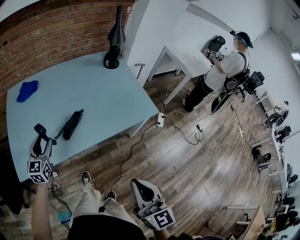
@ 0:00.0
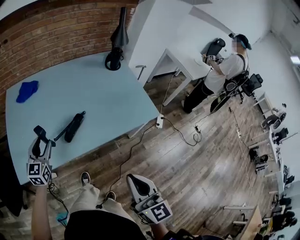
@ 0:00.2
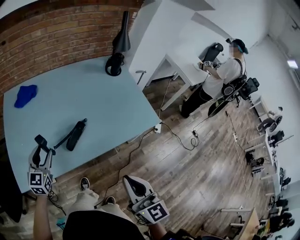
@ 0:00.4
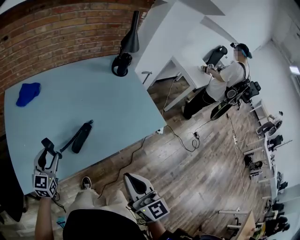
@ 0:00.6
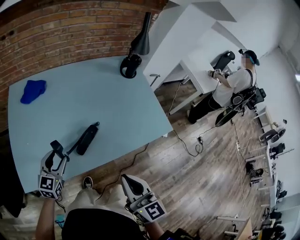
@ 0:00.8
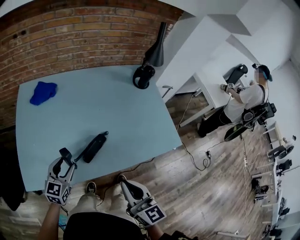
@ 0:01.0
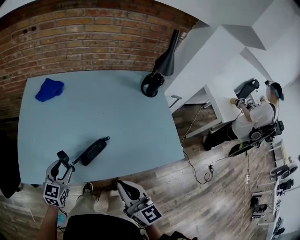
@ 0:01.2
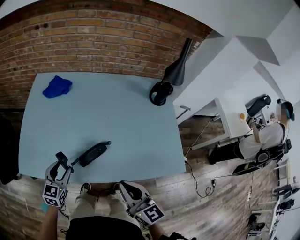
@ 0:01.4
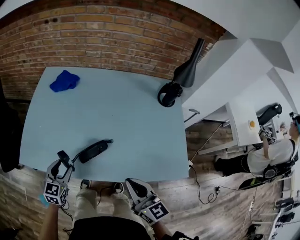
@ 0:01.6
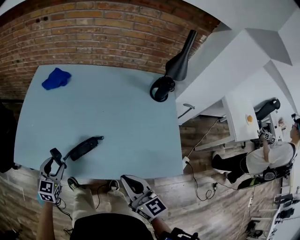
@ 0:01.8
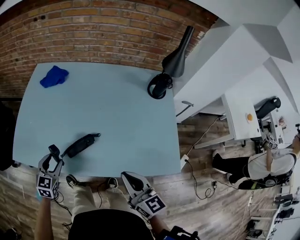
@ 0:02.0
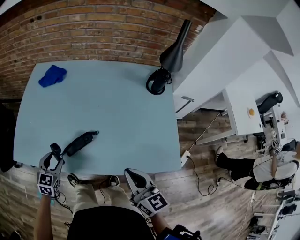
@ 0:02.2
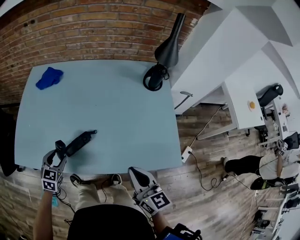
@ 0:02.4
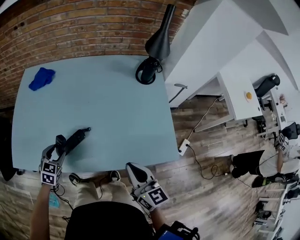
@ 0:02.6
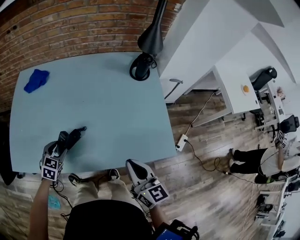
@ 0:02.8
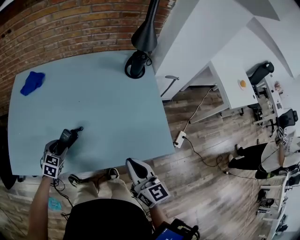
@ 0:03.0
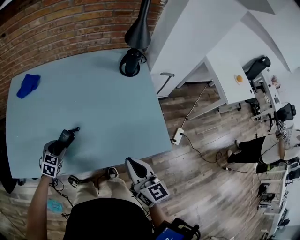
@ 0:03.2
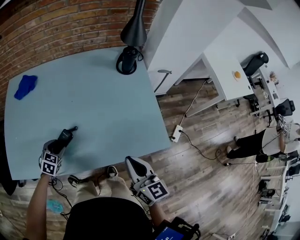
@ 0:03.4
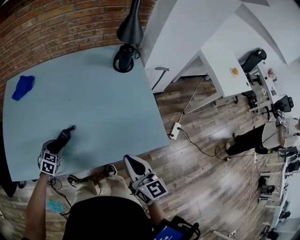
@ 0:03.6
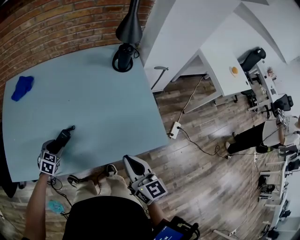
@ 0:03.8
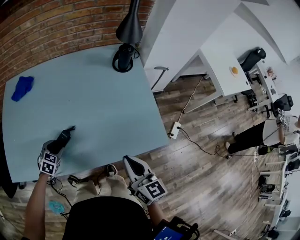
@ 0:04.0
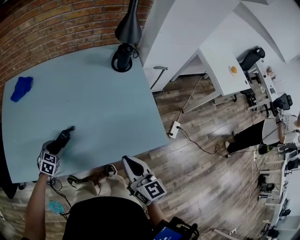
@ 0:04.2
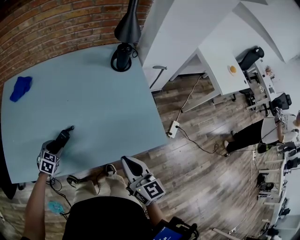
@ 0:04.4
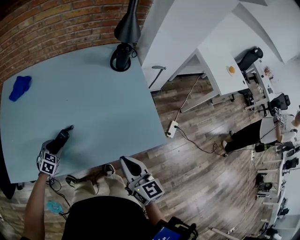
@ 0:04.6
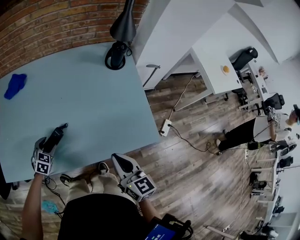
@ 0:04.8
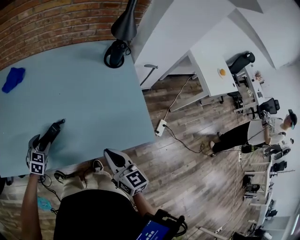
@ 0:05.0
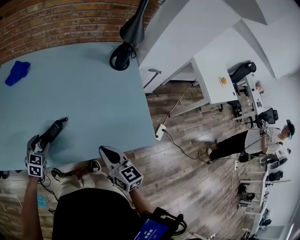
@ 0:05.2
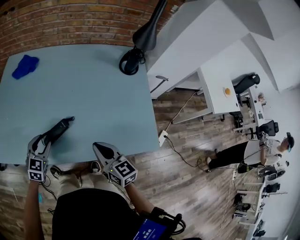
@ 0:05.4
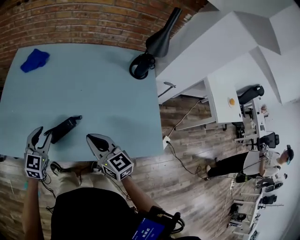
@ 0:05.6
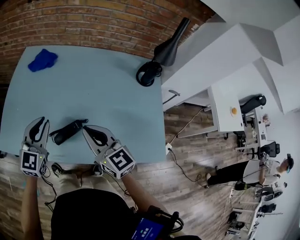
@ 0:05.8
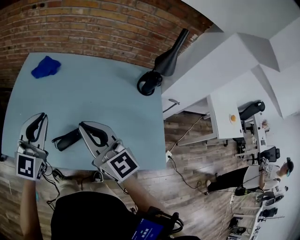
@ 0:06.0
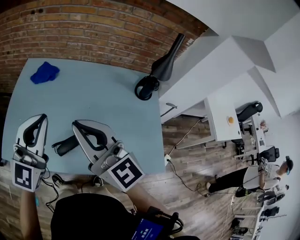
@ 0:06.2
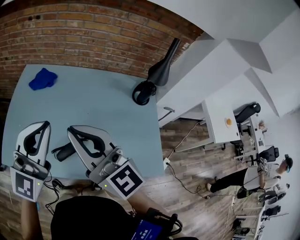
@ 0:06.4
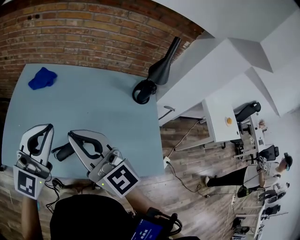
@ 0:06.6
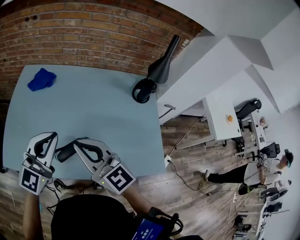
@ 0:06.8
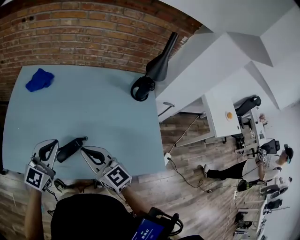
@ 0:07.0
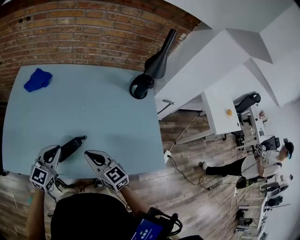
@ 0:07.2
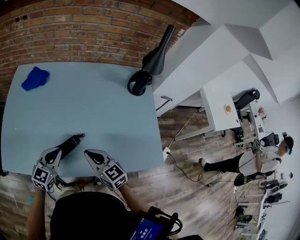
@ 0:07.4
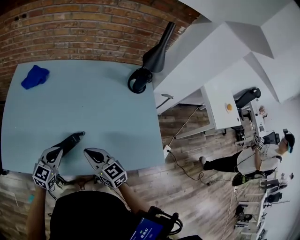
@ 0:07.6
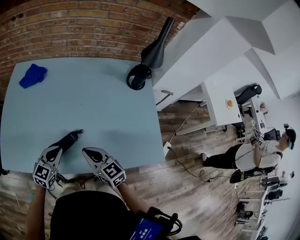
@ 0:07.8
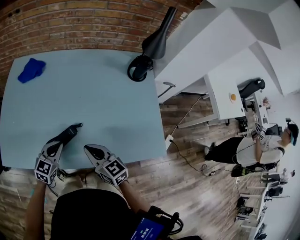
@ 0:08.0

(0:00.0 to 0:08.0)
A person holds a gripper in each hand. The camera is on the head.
0:00.0 - 0:01.6: The left gripper goes roughly 5 cm downward, and rotates some 20 degrees, while the right gripper changes place by some 30 cm, and swivels approximately 40 degrees.
0:01.6 - 0:03.2: The left gripper shifts approximately 20 cm to the right, downward and forward, and rotates about 30 degrees. Meanwhile the right gripper goes about 15 cm to the right.
0:03.2 - 0:04.8: The grippers make only small movements.
0:04.8 - 0:06.4: The left gripper heads upward, covering about 40 cm, tilts its fingers about 60 degrees upward, and closes, while the right gripper moves upward, to the left and forward, approximately 40 cm, and changes its angle by about 50 degrees.
0:06.4 - 0:08.0: Both grippers travel together downward, approximately 35 cm. The right gripper turns by some 40 degrees, while the left gripper points its fingers roughly 40 degrees further downward.

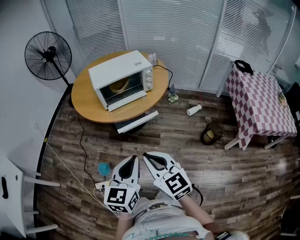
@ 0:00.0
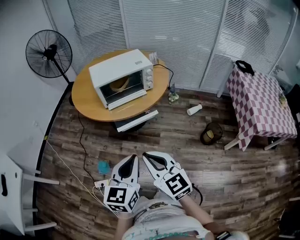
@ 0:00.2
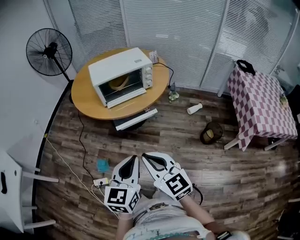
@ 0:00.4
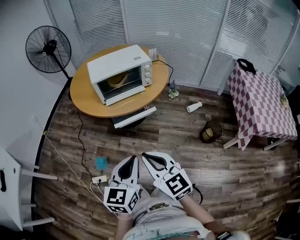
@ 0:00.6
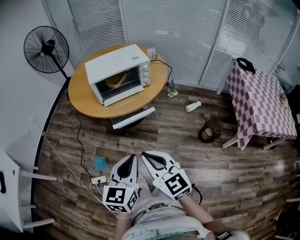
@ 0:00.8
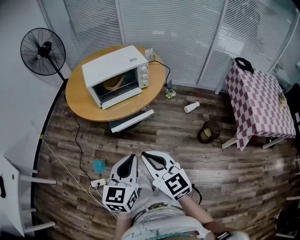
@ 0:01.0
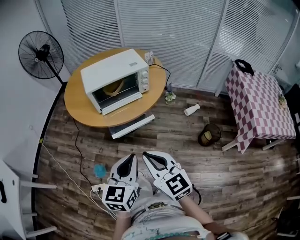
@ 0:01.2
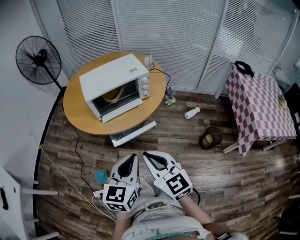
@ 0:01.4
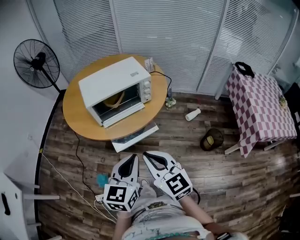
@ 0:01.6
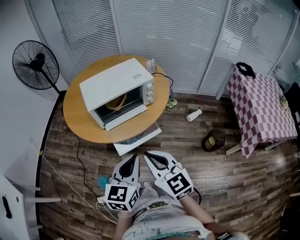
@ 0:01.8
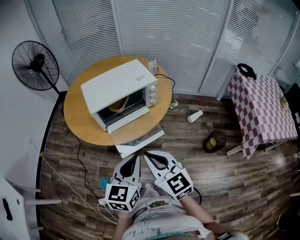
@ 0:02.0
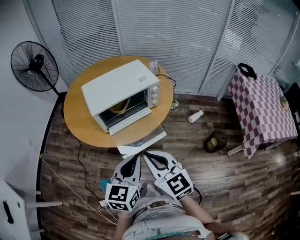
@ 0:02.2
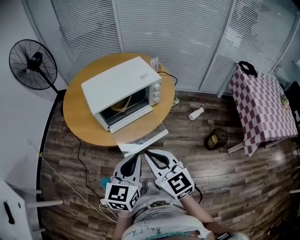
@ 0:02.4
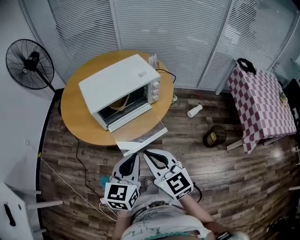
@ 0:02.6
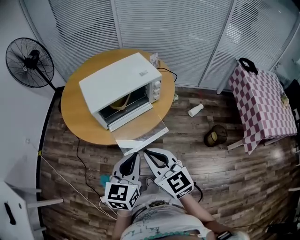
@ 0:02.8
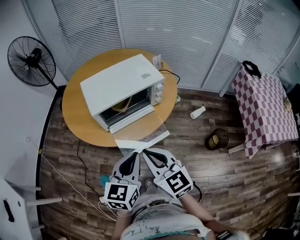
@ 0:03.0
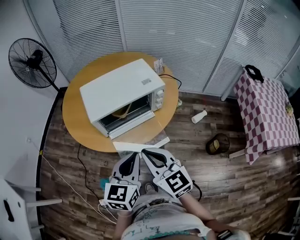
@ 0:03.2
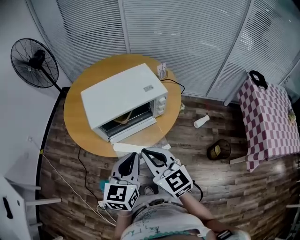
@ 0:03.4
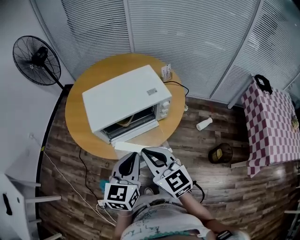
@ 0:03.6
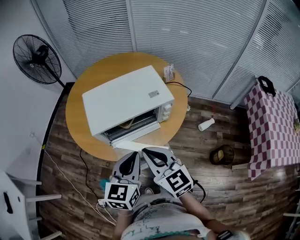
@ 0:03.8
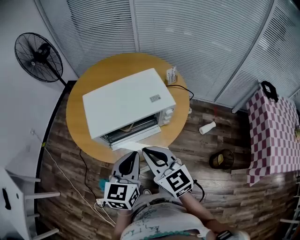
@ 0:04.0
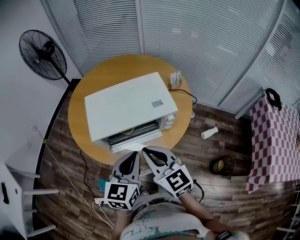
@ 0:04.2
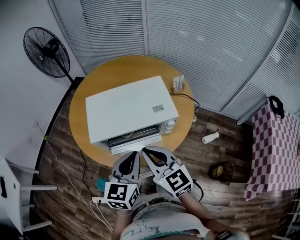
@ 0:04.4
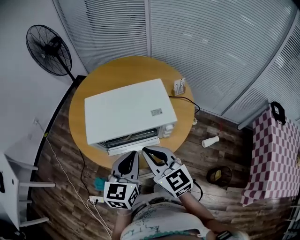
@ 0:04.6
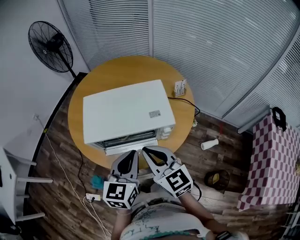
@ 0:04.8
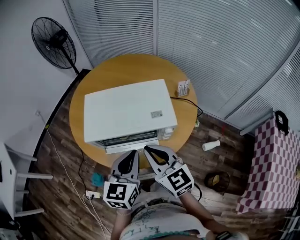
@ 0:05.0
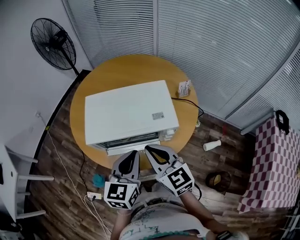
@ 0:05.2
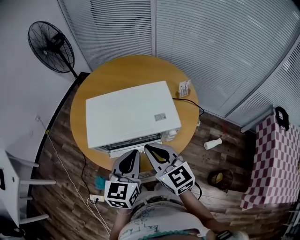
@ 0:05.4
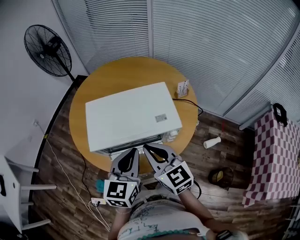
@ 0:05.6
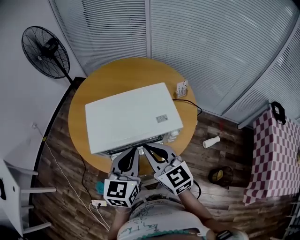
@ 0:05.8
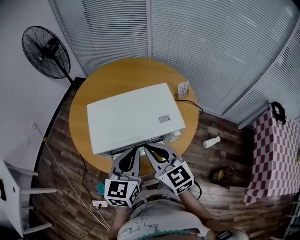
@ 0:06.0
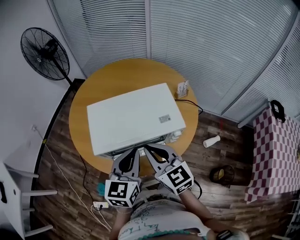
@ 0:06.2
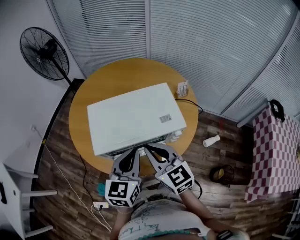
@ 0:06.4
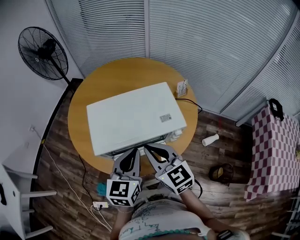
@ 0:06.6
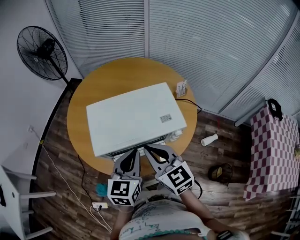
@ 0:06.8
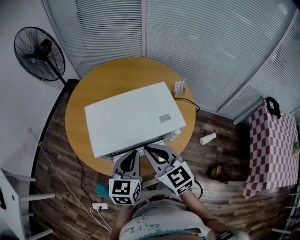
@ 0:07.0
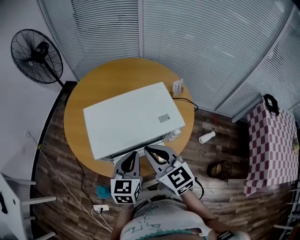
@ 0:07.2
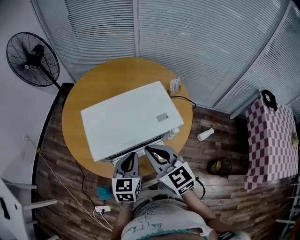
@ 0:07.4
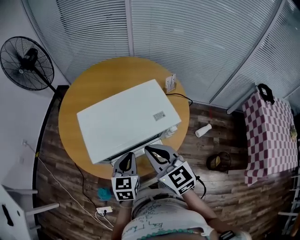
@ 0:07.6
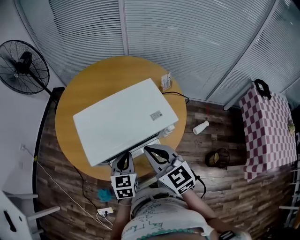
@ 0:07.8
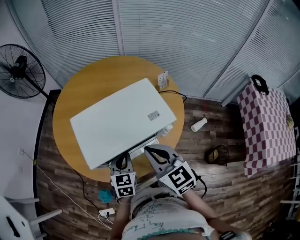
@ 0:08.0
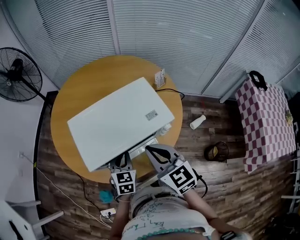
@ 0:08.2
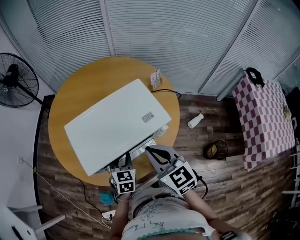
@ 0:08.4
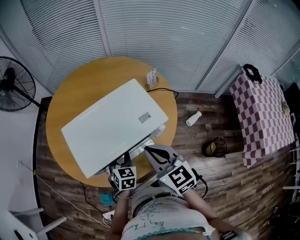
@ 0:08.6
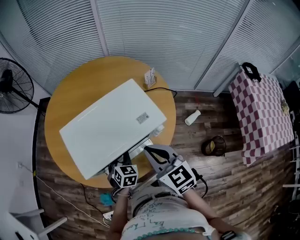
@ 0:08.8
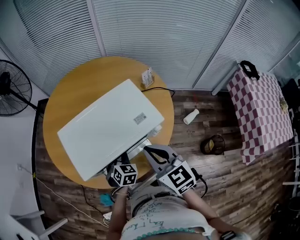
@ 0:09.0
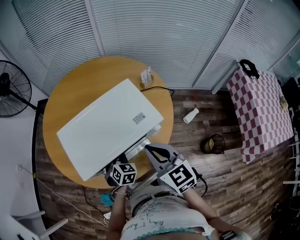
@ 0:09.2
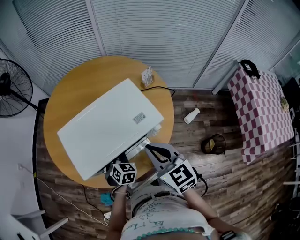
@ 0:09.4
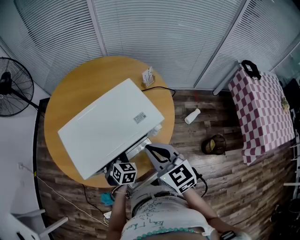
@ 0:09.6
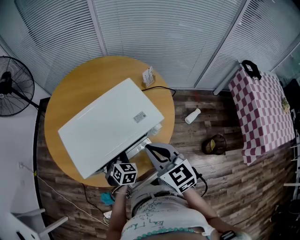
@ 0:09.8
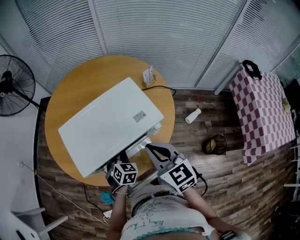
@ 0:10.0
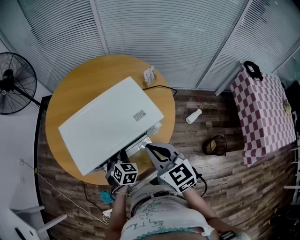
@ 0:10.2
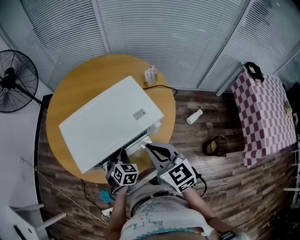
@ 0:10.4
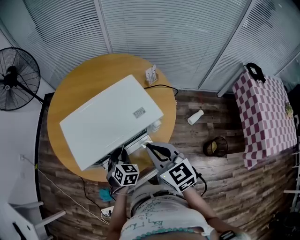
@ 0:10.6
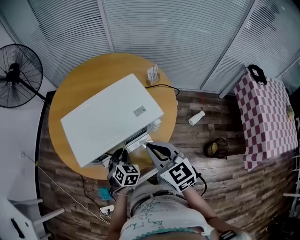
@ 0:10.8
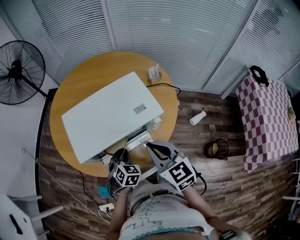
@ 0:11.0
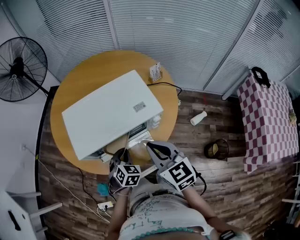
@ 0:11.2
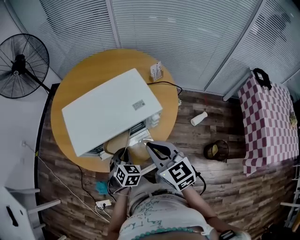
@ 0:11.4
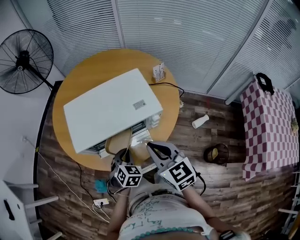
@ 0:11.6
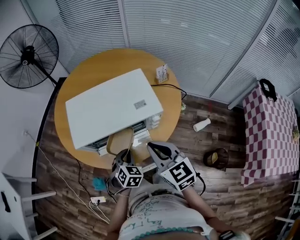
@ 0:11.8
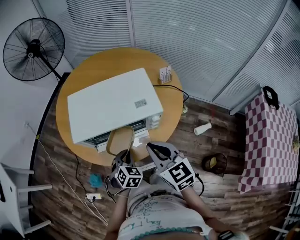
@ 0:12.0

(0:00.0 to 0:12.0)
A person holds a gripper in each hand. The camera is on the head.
0:00.0 - 0:01.6: The two grippers go about 15 cm forward.
0:01.6 - 0:03.0: The right gripper moves forward and to the left, some 10 cm, while the left gripper moves forward, about 10 cm.
0:03.0 - 0:04.4: Both grippers travel together forward, approximately 15 cm.
0:04.4 - 0:06.0: The grippers both shift forward by roughly 5 cm.
0:06.0 - 0:07.6: The left gripper is displaced downward by roughly 10 cm.
0:07.6 - 0:09.0: The left gripper is displaced downward and forward by roughly 10 cm, turns by some 30 degrees, and opens up; the right gripper heads to the right, covering roughly 5 cm.
0:09.0 - 0:10.4: The grippers move only a little.
0:10.4 - 0:12.0: The right gripper shifts by approximately 5 cm. Meanwhile the left gripper moves backward, approximately 10 cm.

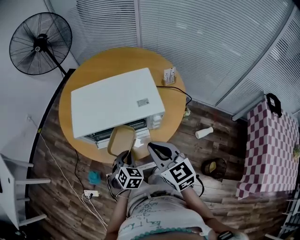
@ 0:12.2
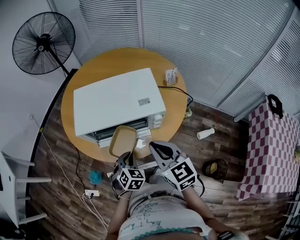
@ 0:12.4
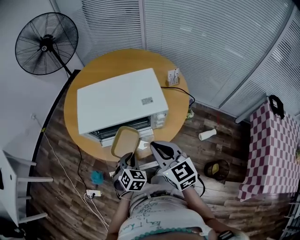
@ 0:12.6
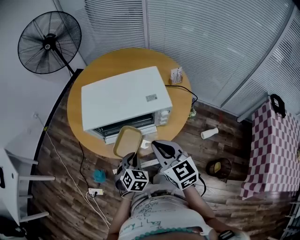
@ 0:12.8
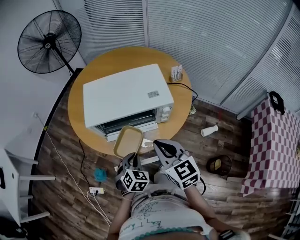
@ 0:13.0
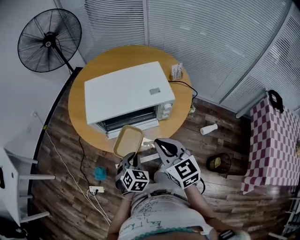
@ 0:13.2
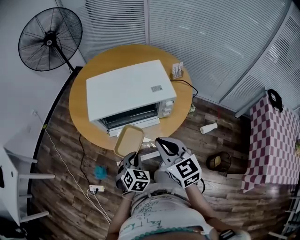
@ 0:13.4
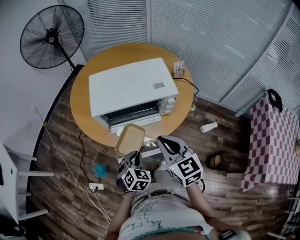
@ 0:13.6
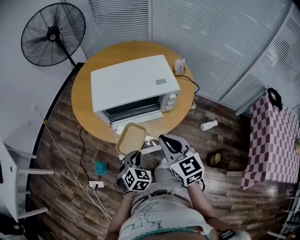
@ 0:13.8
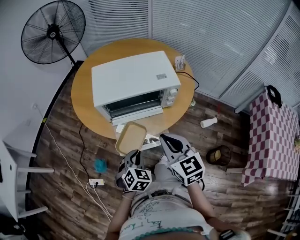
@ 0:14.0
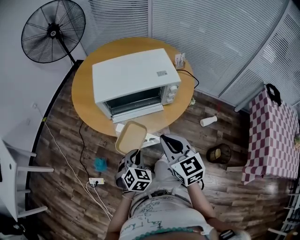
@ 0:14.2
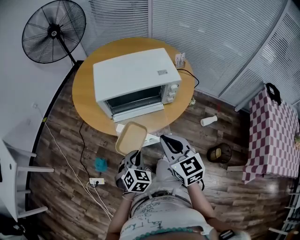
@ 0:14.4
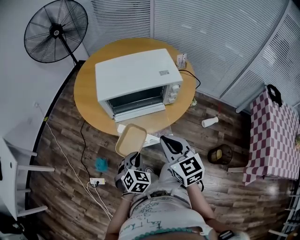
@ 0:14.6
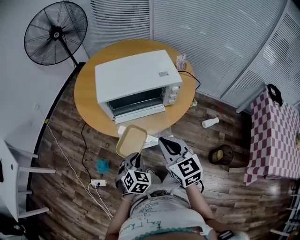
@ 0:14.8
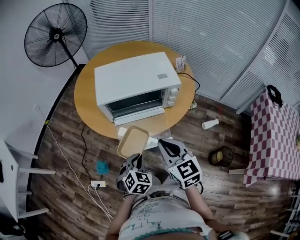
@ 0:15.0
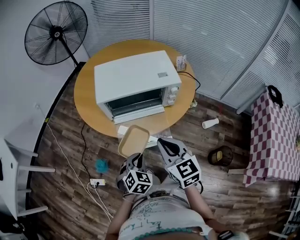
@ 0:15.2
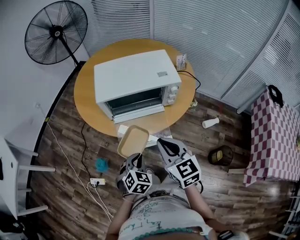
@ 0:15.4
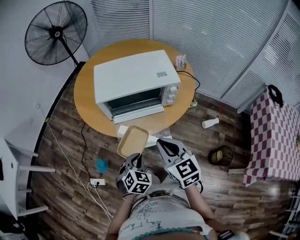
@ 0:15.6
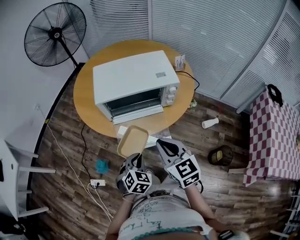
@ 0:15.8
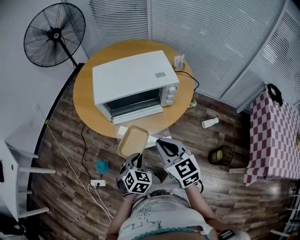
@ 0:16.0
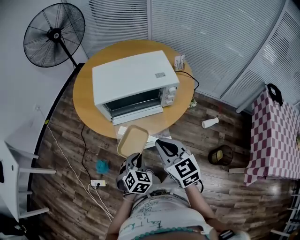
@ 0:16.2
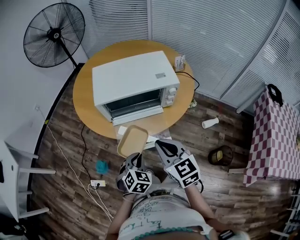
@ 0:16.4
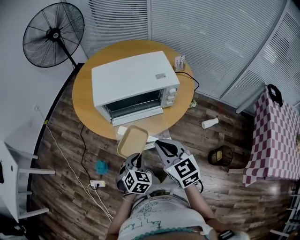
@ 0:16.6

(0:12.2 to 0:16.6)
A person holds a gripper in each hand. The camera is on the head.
0:12.2 - 0:13.6: The grippers both shift backward and to the left by roughly 10 cm.
0:13.6 - 0:15.2: Both grippers move backward, roughly 5 cm.
0:15.2 - 0:16.6: Both grippers stay about where they are.
